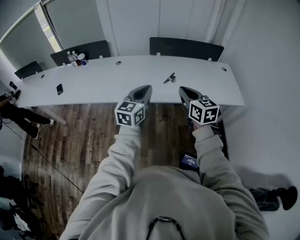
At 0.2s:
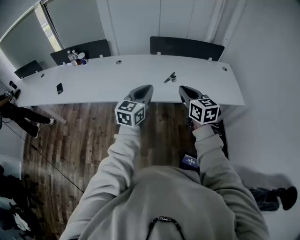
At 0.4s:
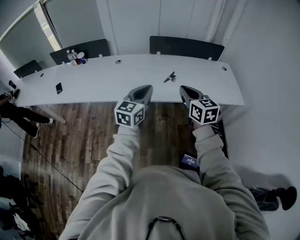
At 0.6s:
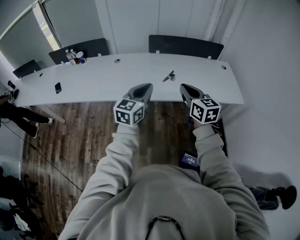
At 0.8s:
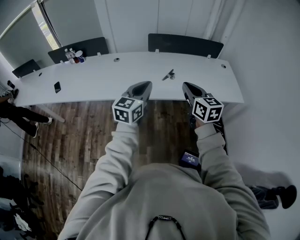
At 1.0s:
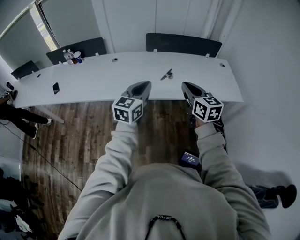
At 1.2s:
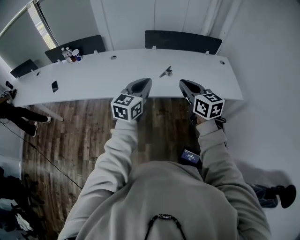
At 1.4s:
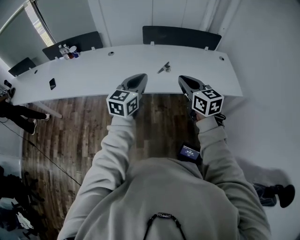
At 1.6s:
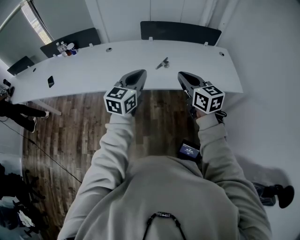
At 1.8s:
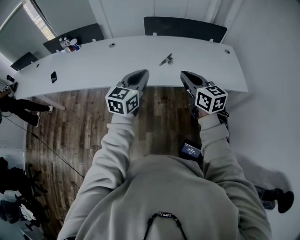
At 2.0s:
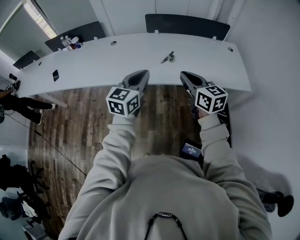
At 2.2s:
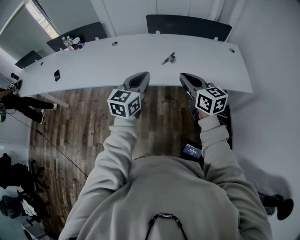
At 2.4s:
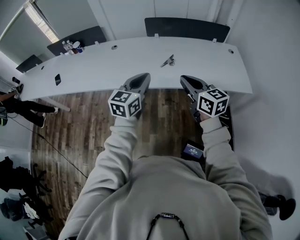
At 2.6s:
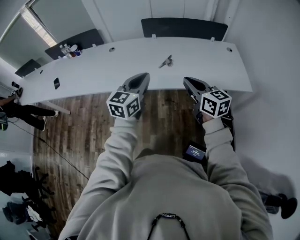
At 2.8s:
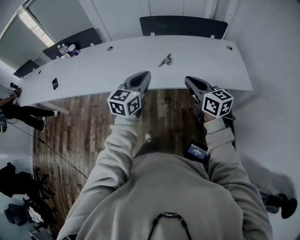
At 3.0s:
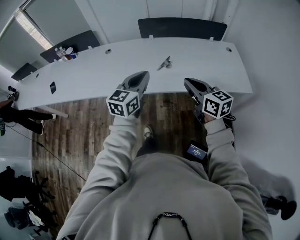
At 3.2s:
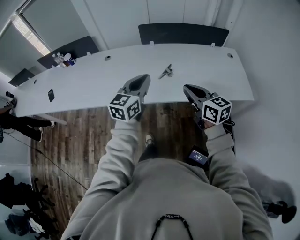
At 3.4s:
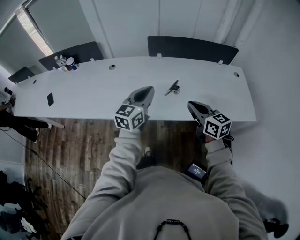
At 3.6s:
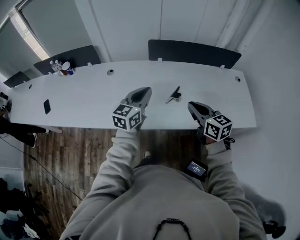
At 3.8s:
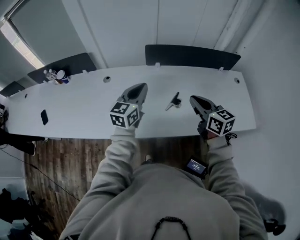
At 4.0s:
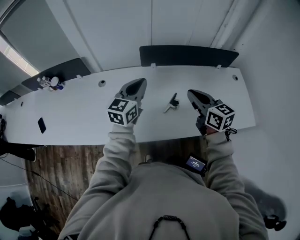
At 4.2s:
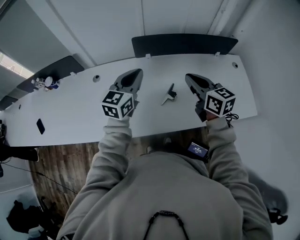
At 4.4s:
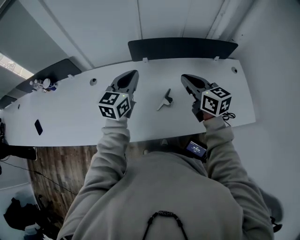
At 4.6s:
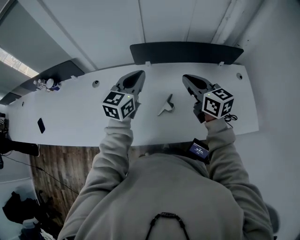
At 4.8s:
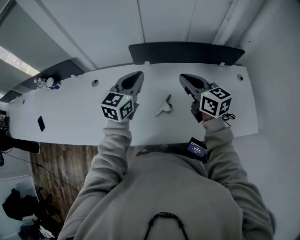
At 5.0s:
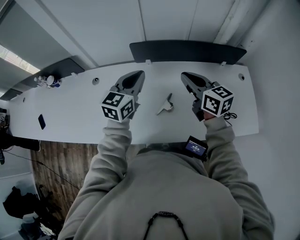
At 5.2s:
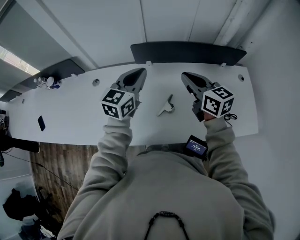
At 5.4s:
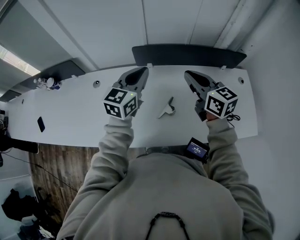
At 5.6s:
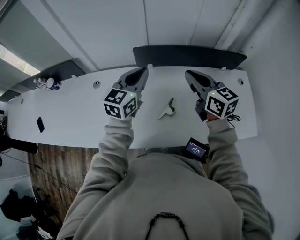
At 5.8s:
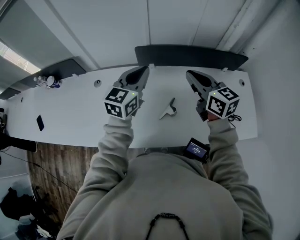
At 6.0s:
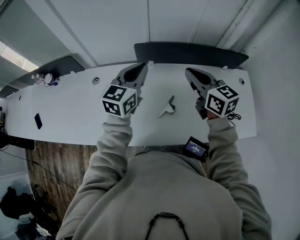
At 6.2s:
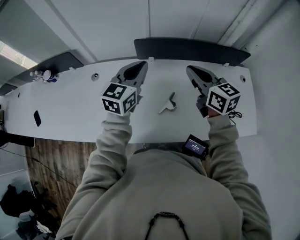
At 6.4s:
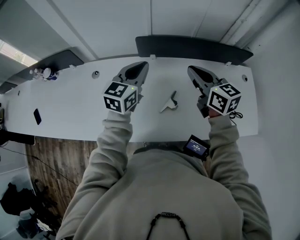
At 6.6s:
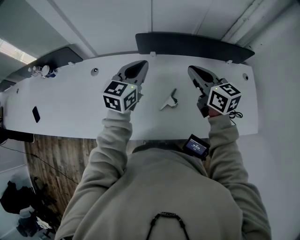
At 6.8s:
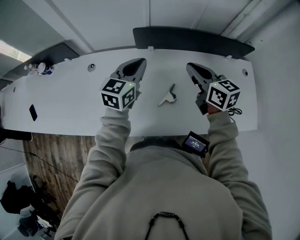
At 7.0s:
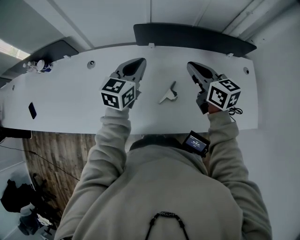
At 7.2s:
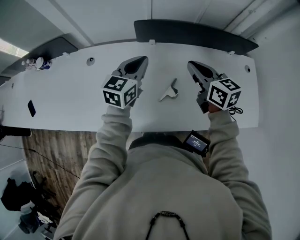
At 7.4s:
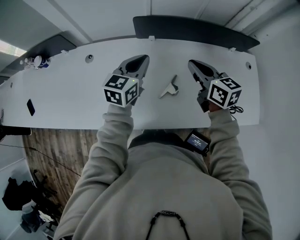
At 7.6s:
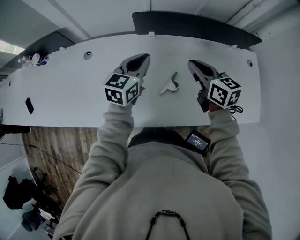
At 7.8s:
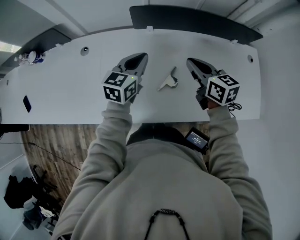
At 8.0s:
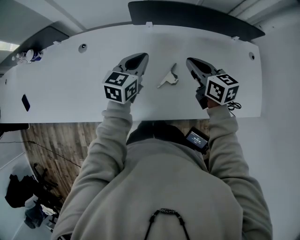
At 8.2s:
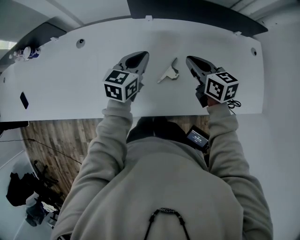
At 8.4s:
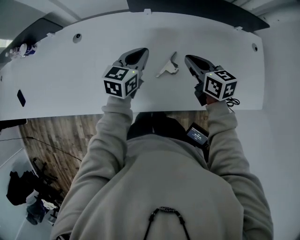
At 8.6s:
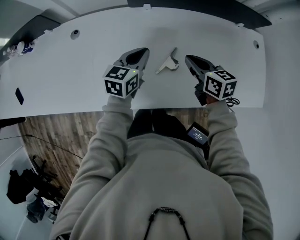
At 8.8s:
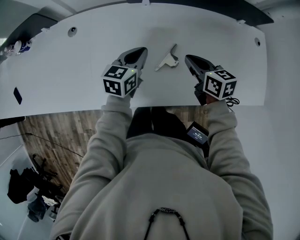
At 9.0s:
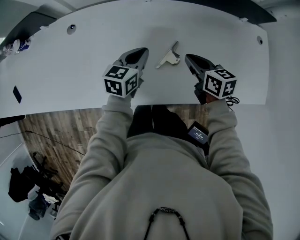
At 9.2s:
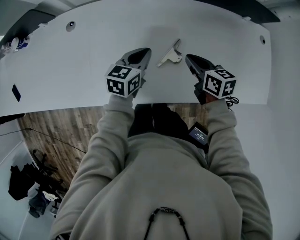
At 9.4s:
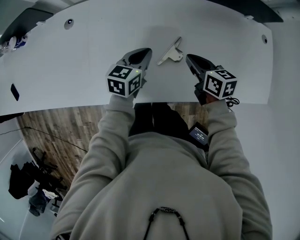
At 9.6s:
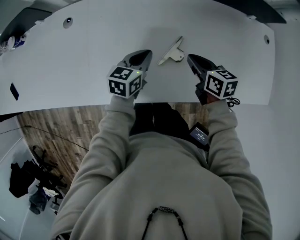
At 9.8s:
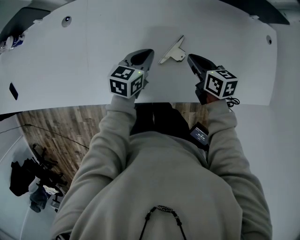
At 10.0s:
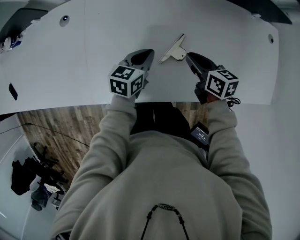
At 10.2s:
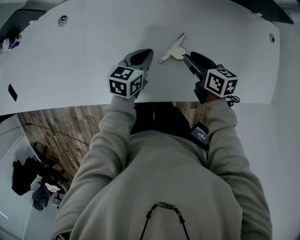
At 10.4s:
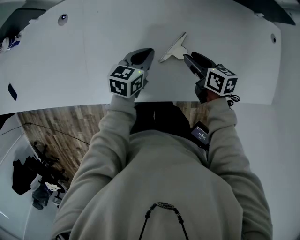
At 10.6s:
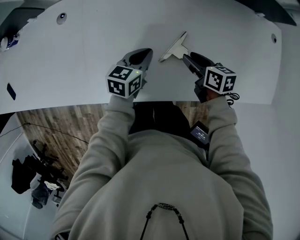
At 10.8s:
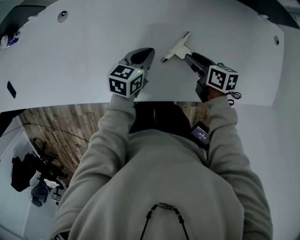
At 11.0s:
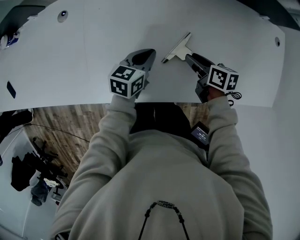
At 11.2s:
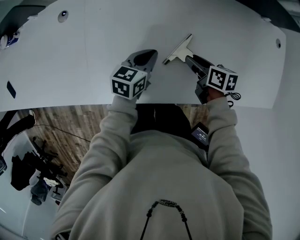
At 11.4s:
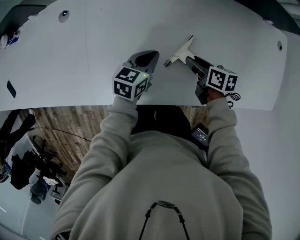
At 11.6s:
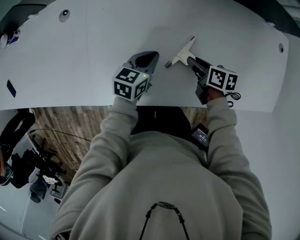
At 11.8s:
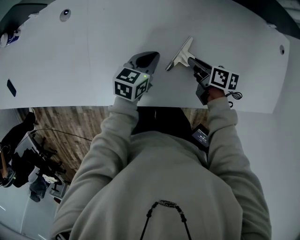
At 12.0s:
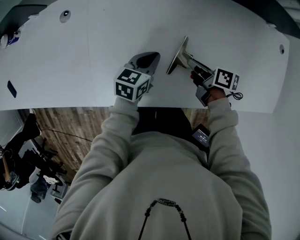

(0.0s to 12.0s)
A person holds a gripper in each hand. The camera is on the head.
0.0s - 1.6s: The right gripper ends up approximately 5 cm from where it was.
1.6s - 3.0s: The left gripper is displaced forward by approximately 5 cm, while the right gripper heads to the right and downward, covering some 10 cm.
3.0s - 4.4s: The grippers both shift forward by about 35 cm.
4.4s - 6.0s: The grippers both shift forward by some 5 cm.
6.0s - 7.6s: The two grippers go approximately 10 cm downward.
7.6s - 9.0s: The two grippers go approximately 15 cm downward.
9.0s - 10.4s: The grippers both shift downward by approximately 10 cm. The right gripper opens.
10.4s - 12.0s: The right gripper changes place by approximately 5 cm, turns by roughly 30 degrees, and closes its fingers.

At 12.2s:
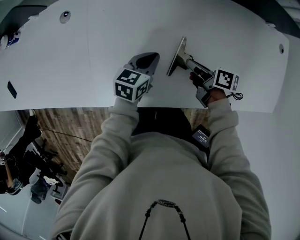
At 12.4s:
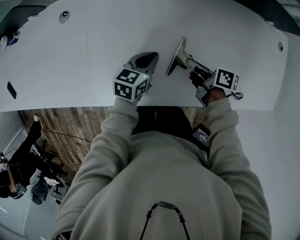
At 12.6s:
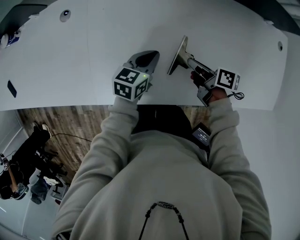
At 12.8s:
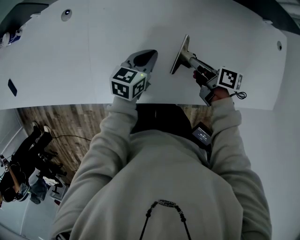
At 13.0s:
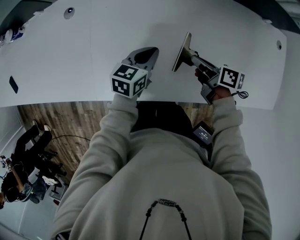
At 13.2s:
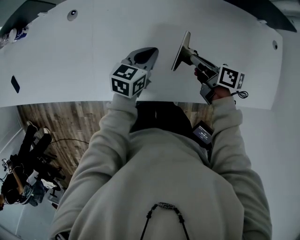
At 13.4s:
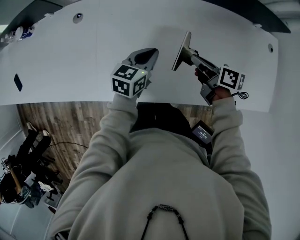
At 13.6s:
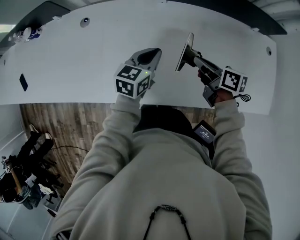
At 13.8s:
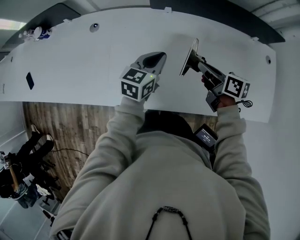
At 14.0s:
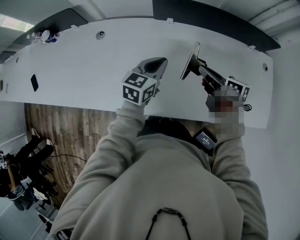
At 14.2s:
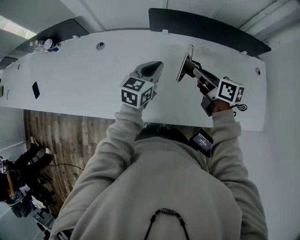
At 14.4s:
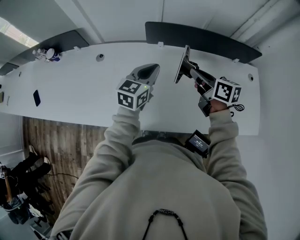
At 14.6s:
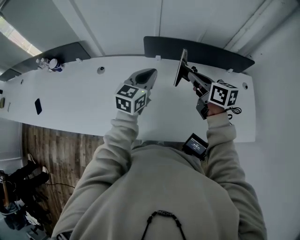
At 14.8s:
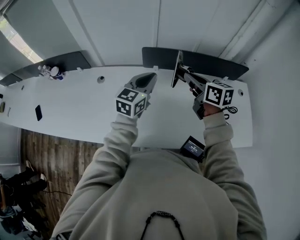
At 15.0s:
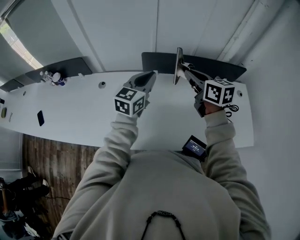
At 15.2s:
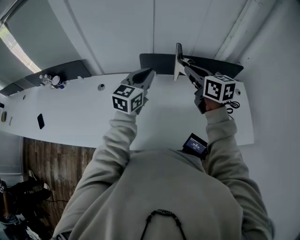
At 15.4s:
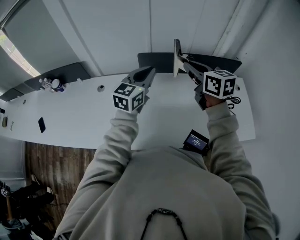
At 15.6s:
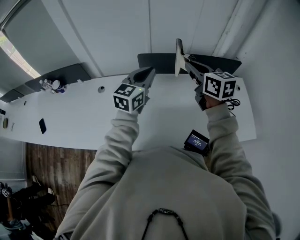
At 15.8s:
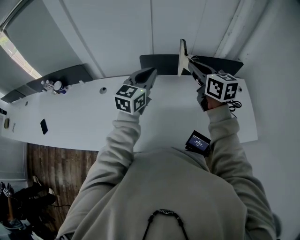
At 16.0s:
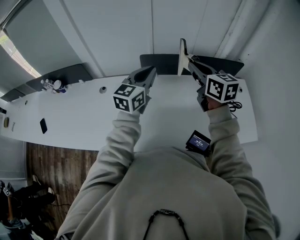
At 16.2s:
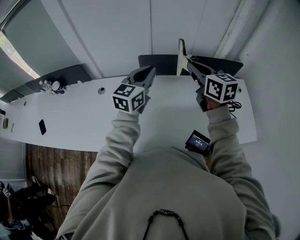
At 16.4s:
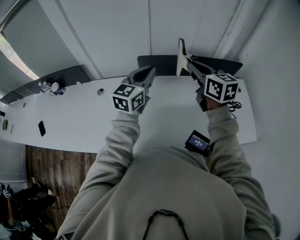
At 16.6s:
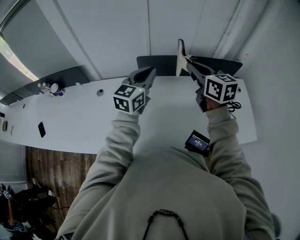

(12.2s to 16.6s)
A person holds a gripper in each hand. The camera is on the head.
12.2s - 13.6s: Both grippers move upward, some 10 cm.
13.6s - 15.2s: Both grippers travel together upward, about 30 cm. The right gripper rotates some 40 degrees. The left gripper swivels about 30 degrees.
15.2s - 16.6s: The grippers stay close to where they were, moving slightly.

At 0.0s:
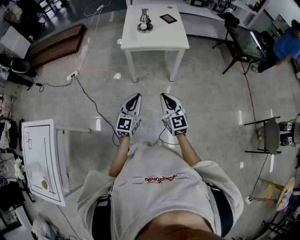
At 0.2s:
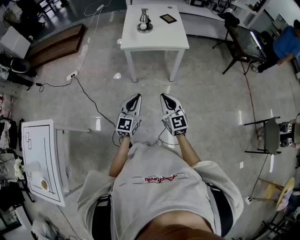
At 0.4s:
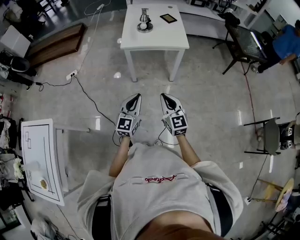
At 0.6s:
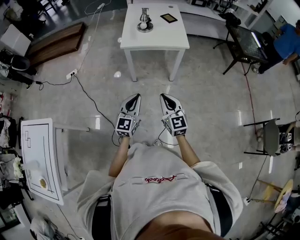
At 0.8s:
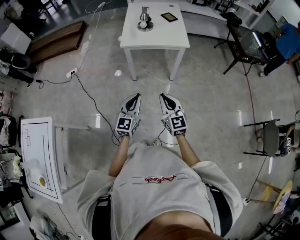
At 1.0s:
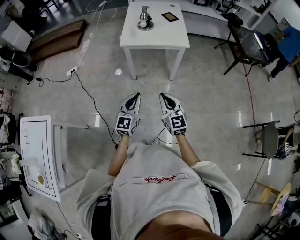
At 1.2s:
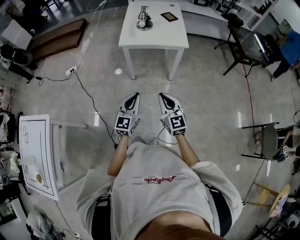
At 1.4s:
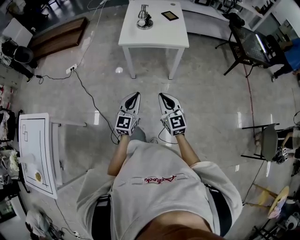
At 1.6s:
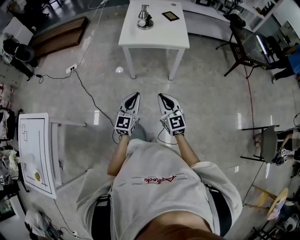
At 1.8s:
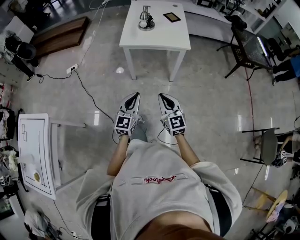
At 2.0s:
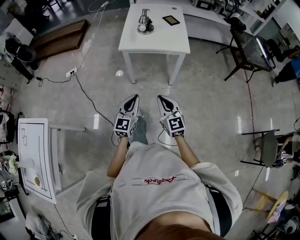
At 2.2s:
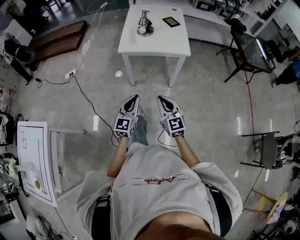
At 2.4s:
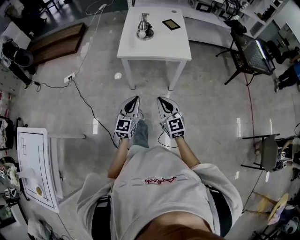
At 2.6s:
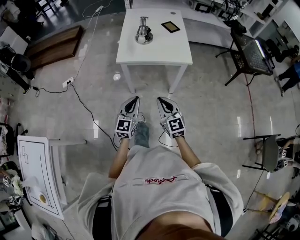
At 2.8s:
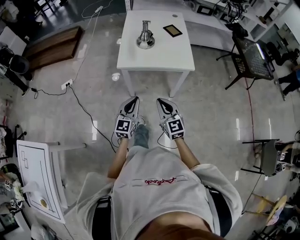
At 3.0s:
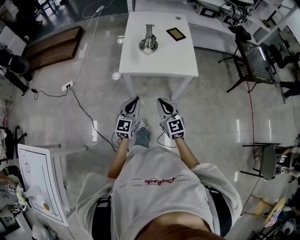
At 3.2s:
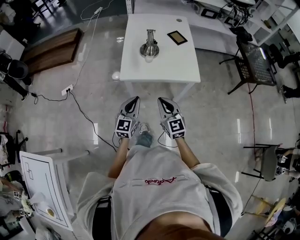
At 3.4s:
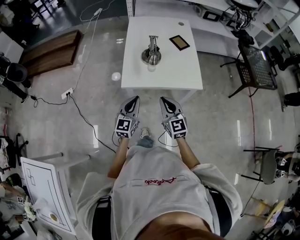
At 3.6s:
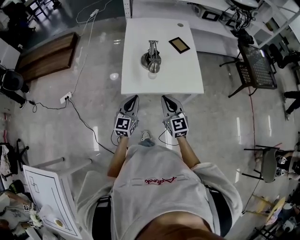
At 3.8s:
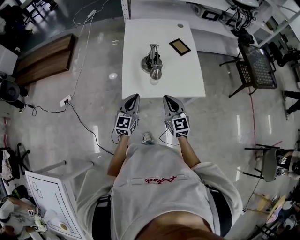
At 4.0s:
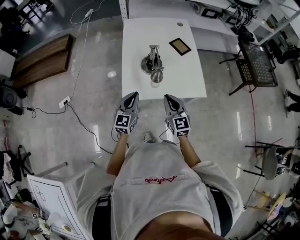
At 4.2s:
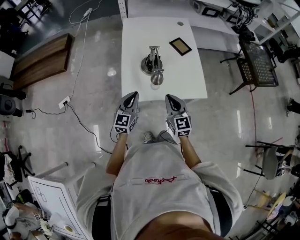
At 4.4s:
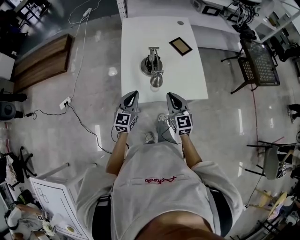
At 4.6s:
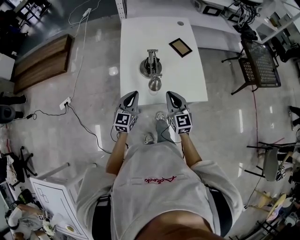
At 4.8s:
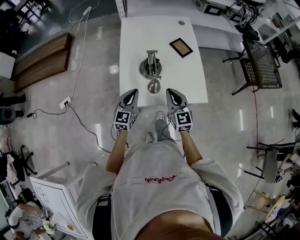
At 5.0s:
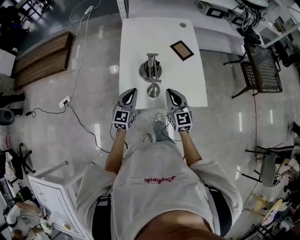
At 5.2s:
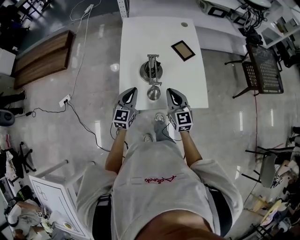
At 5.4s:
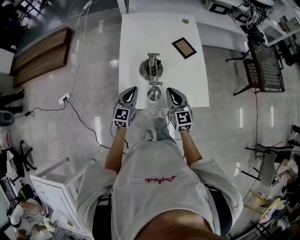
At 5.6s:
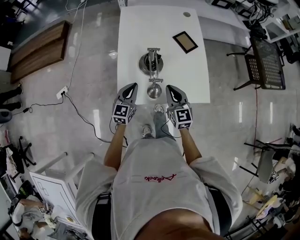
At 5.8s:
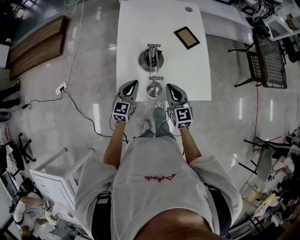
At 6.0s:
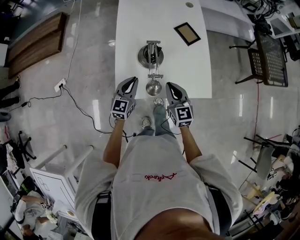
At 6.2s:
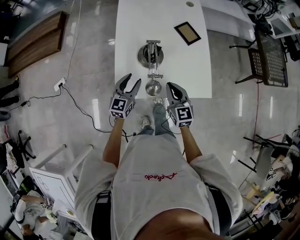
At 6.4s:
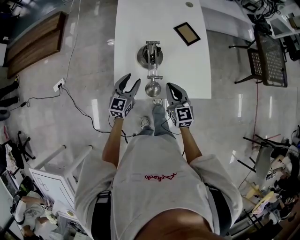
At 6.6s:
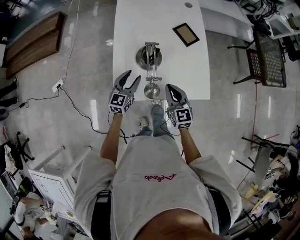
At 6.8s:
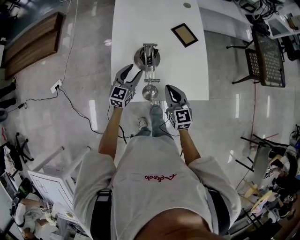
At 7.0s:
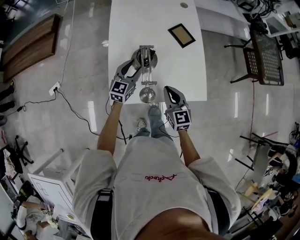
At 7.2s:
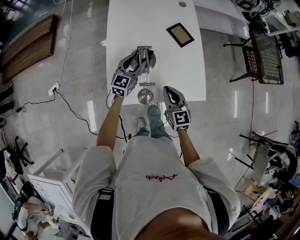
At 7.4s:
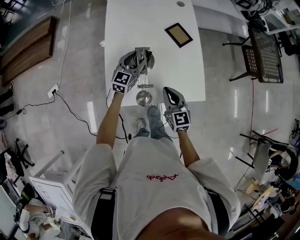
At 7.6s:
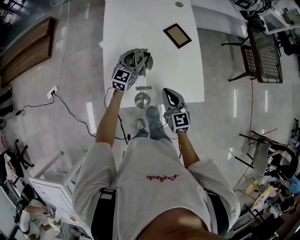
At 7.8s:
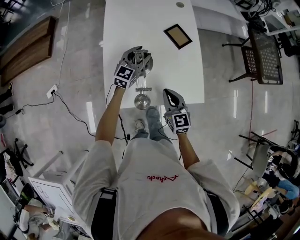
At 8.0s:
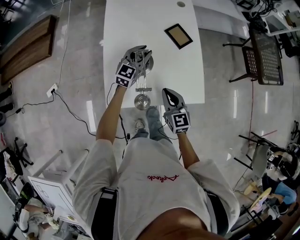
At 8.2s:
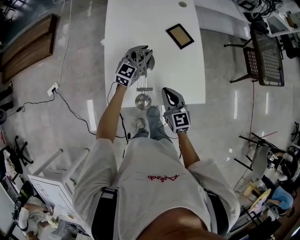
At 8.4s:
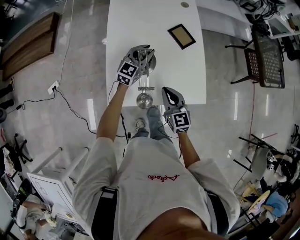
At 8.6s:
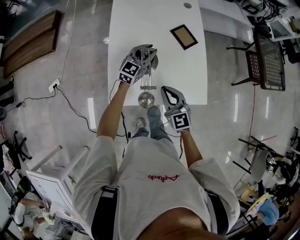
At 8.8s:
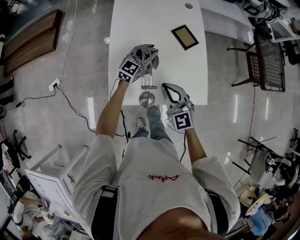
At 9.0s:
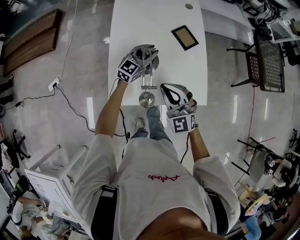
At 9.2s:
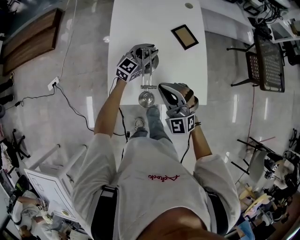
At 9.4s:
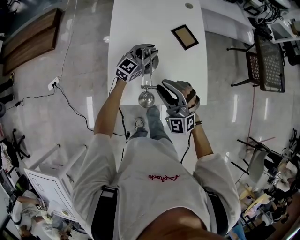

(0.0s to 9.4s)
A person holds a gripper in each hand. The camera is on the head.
0.0s - 1.6s: The grippers move only a little.
1.6s - 3.2s: Both grippers travel together forward, about 30 cm.
3.2s - 4.8s: The grippers both shift forward by roughly 25 cm.
4.8s - 6.2s: Both grippers travel together downward, about 5 cm. The left gripper opens.
6.2s - 7.8s: The left gripper travels forward and to the right by approximately 20 cm.
7.8s - 9.4s: The right gripper heads upward and to the left, covering roughly 10 cm, rolls counterclockwise, seen from behind, by approximately 60 degrees, and opens up.
